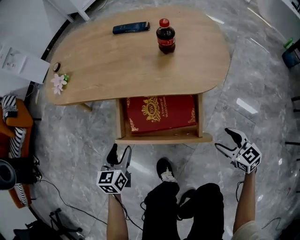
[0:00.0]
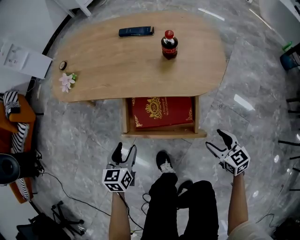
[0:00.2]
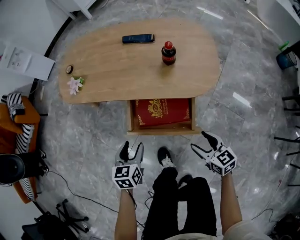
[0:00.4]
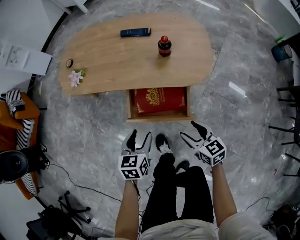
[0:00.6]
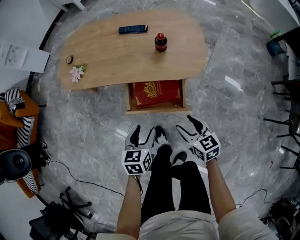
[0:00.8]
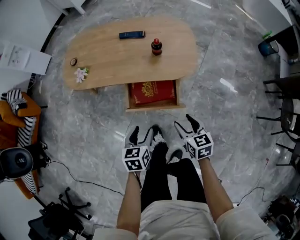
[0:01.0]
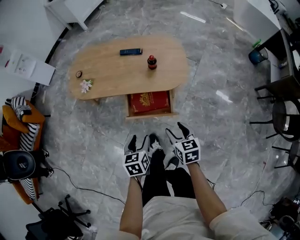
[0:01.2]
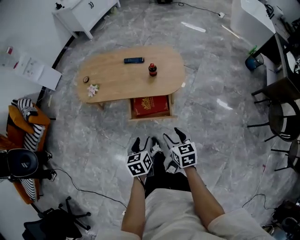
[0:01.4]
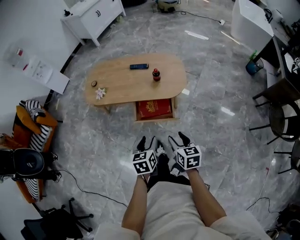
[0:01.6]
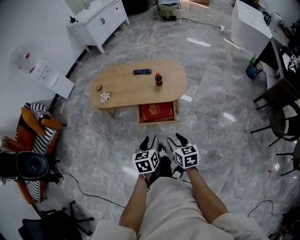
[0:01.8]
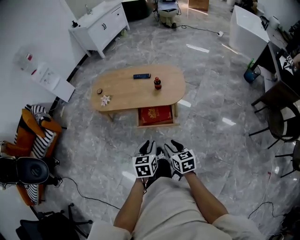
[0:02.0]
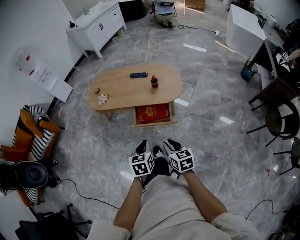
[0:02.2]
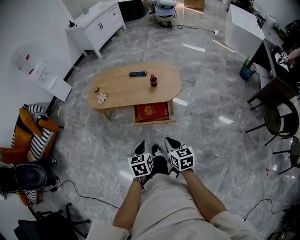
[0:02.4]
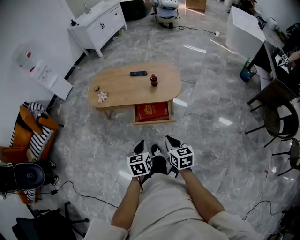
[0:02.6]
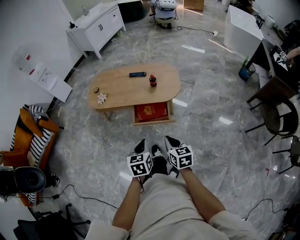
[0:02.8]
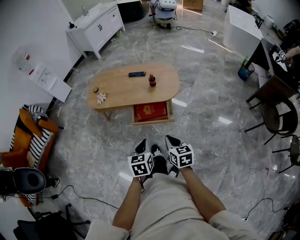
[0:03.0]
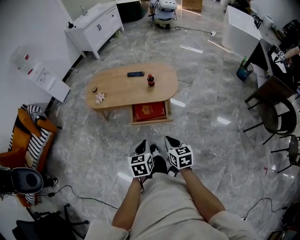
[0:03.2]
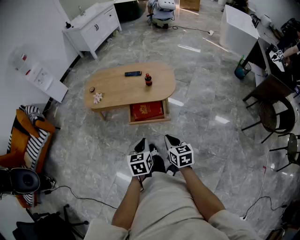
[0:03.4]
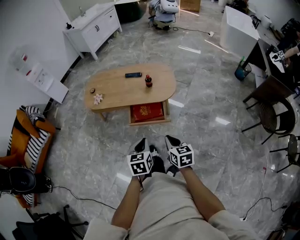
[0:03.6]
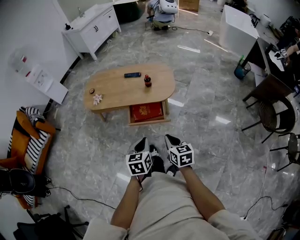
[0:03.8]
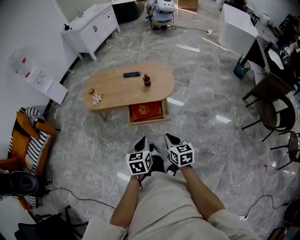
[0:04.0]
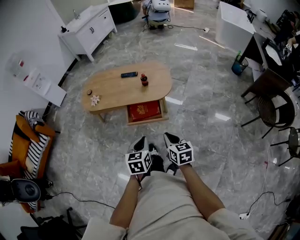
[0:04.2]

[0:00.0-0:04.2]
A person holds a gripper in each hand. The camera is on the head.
0.0 to 1.4 s: The two grippers go about 40 cm upward. The right gripper rotates roughly 20 degrees.
1.4 to 2.8 s: The grippers both shift backward and upward by some 15 cm. The left gripper closes its fingers. Meanwhile the right gripper closes up.
2.8 to 4.2 s: There are only small adjustments of the grippers.

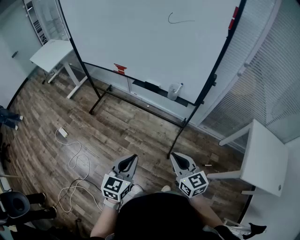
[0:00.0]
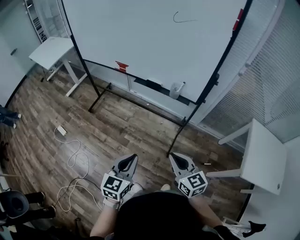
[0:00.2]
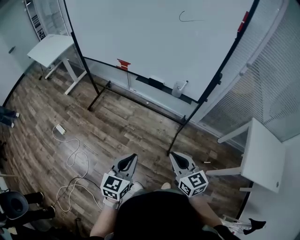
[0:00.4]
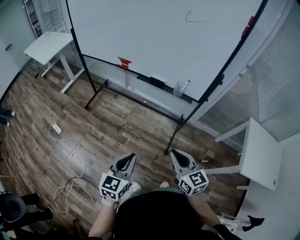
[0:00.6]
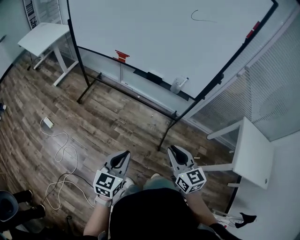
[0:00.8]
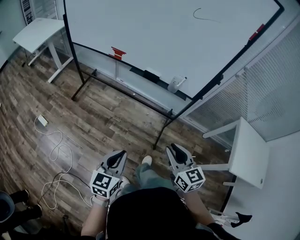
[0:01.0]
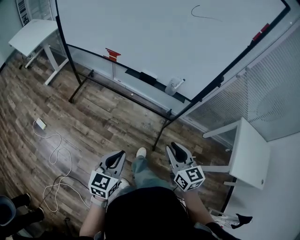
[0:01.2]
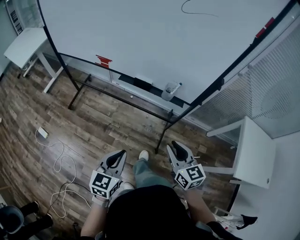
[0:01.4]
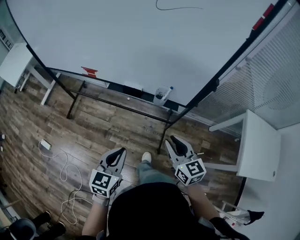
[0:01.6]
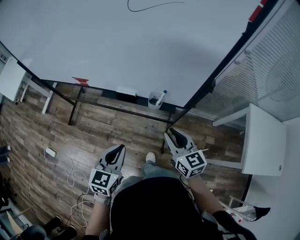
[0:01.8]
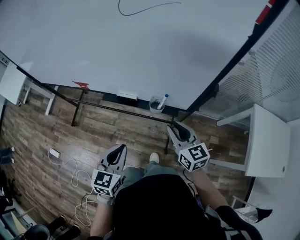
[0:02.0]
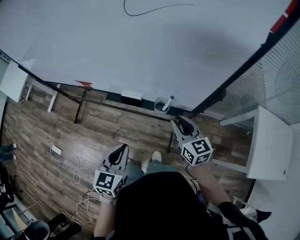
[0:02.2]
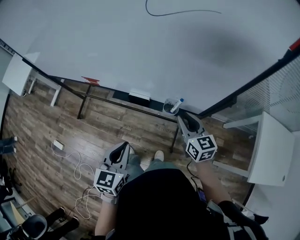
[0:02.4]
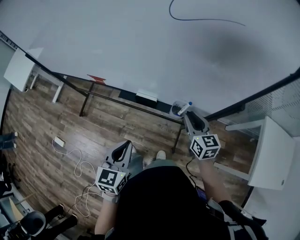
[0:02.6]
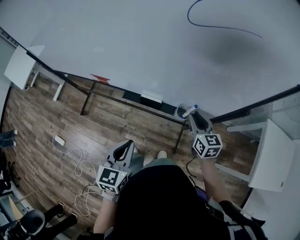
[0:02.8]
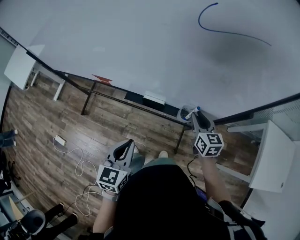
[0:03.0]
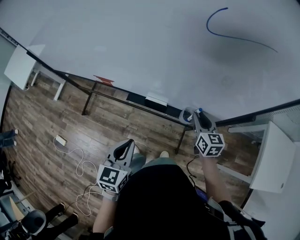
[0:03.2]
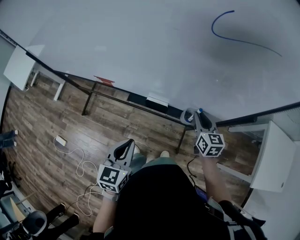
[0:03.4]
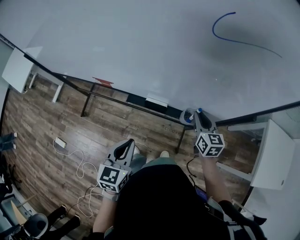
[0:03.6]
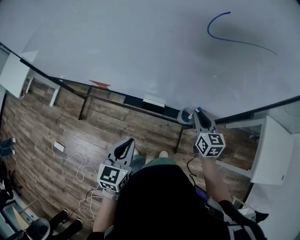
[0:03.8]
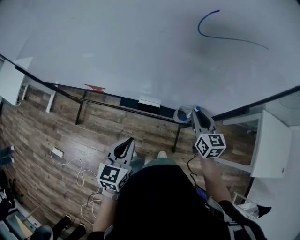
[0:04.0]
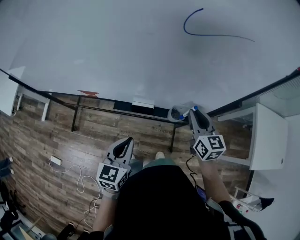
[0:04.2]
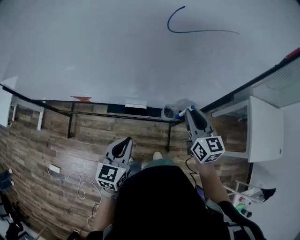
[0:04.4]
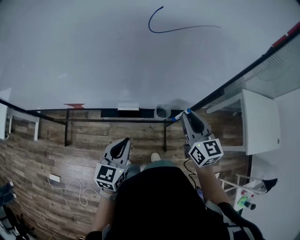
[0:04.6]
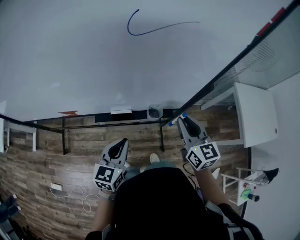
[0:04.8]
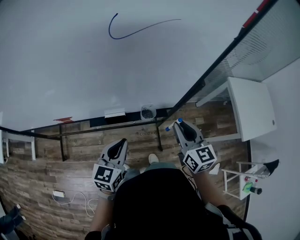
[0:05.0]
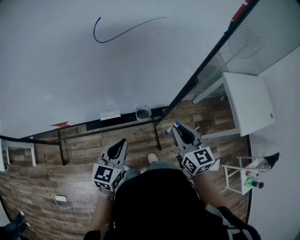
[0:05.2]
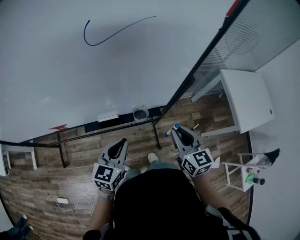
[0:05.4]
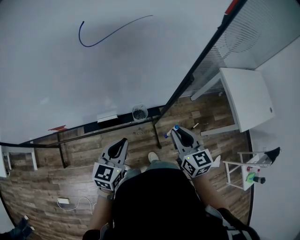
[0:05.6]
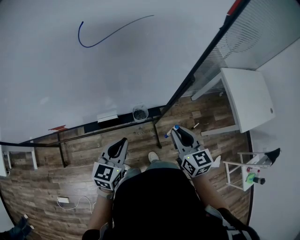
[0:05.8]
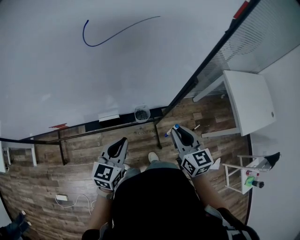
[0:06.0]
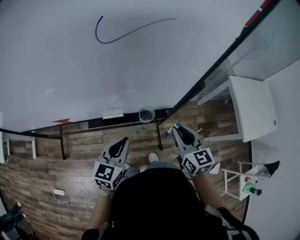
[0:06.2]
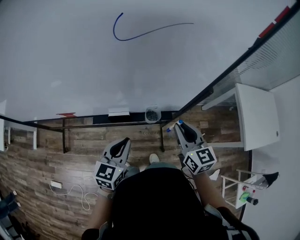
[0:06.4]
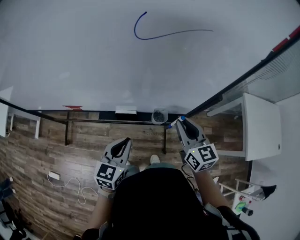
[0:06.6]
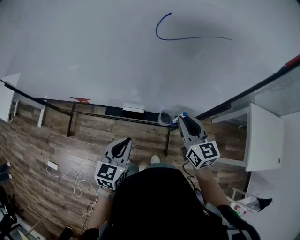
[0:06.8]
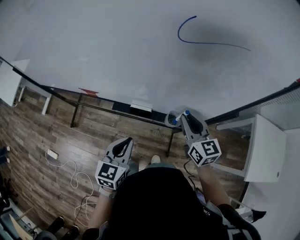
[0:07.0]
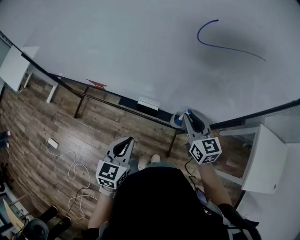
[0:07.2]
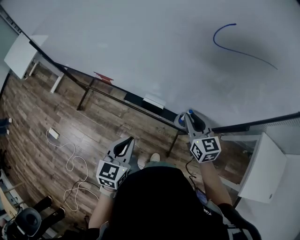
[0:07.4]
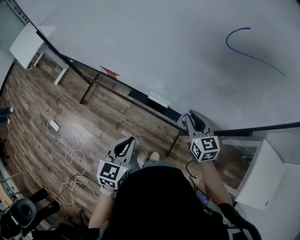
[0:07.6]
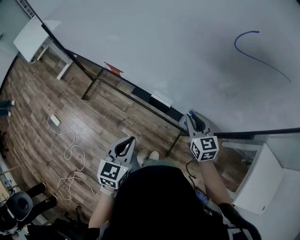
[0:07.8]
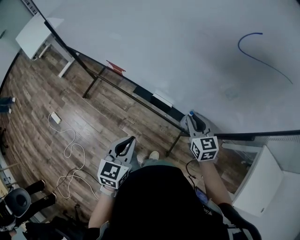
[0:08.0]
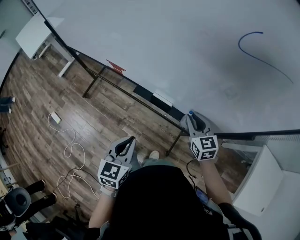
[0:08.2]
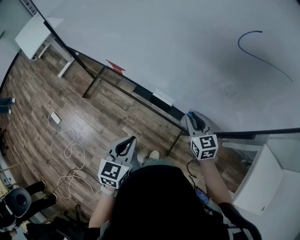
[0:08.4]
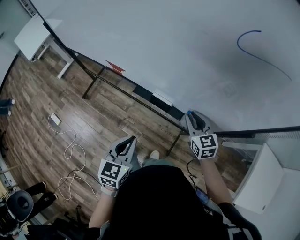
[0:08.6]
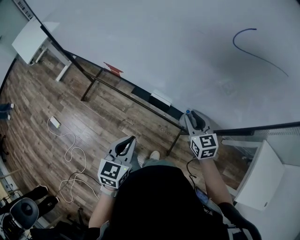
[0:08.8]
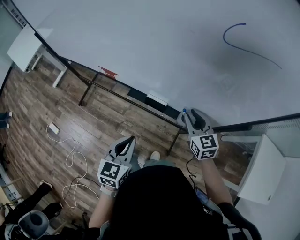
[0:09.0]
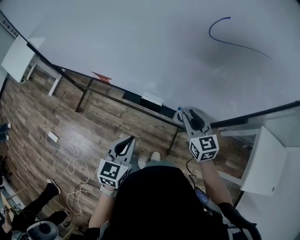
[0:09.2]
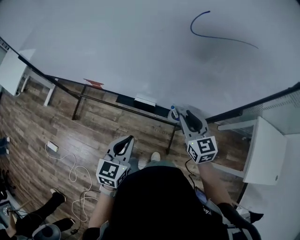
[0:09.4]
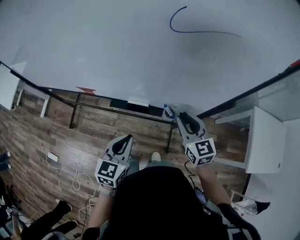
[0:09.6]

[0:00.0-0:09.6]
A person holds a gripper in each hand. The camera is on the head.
0.0 to 1.6 s: The grippers both shift forward by approximately 20 cm.
1.6 to 3.2 s: The left gripper is displaced forward and to the left by some 15 cm. Meanwhile the right gripper travels forward by approximately 25 cm.
3.2 to 4.8 s: The left gripper is displaced to the right and forward by about 10 cm, and rotates approximately 20 degrees; the right gripper moves upward and backward, some 15 cm.
6.4 to 8.0 s: The left gripper ends up roughly 10 cm from where it was, and turns by approximately 40 degrees. The right gripper shifts by approximately 15 cm, and turns by approximately 30 degrees.
8.0 to 9.6 s: The right gripper travels upward and backward by about 10 cm, while the left gripper shifts by roughly 5 cm, and changes its angle by roughly 20 degrees.

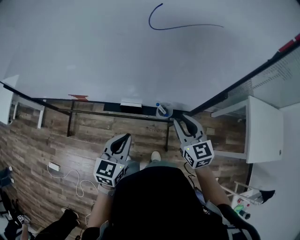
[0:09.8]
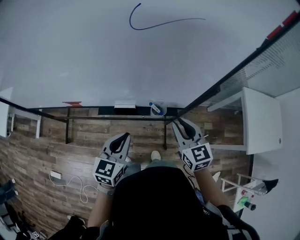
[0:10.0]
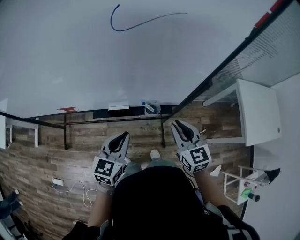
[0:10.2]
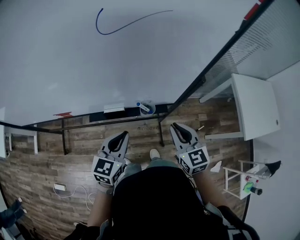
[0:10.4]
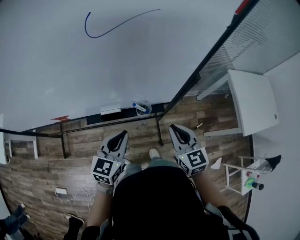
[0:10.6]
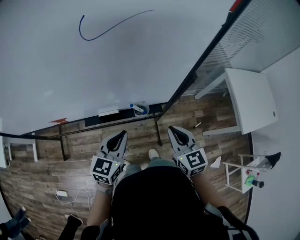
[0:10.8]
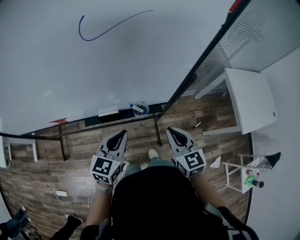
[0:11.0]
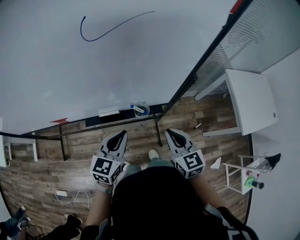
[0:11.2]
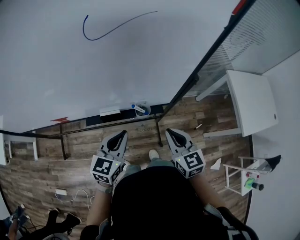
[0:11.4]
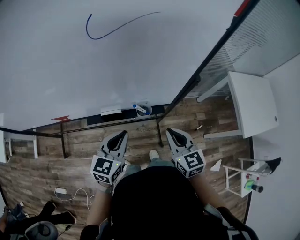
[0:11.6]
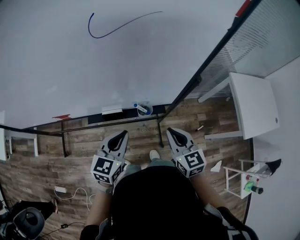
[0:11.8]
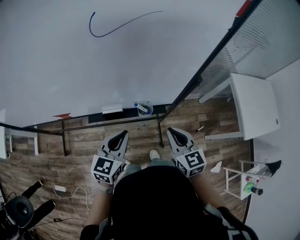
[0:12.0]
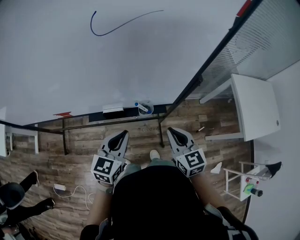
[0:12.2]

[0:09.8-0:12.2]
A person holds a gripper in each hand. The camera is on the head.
9.8 to 11.0 s: The left gripper shifts about 5 cm to the right. The right gripper heads backward and to the right, covering roughly 10 cm, and closes.
11.0 to 12.2 s: The two grippers keep their place.

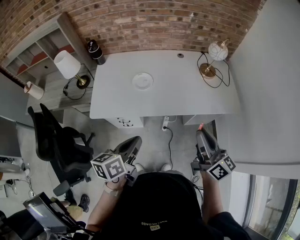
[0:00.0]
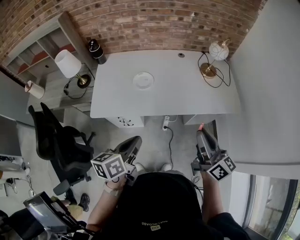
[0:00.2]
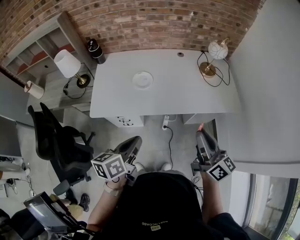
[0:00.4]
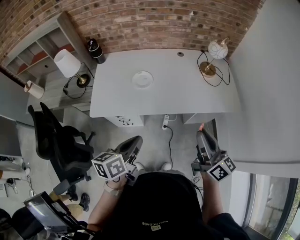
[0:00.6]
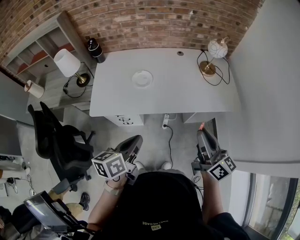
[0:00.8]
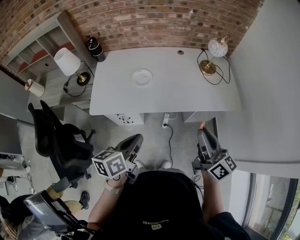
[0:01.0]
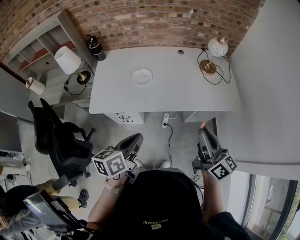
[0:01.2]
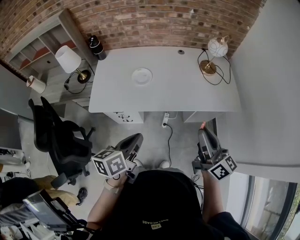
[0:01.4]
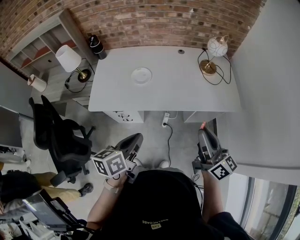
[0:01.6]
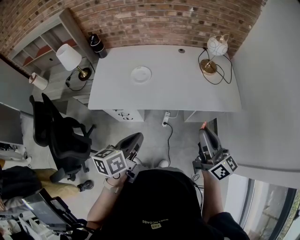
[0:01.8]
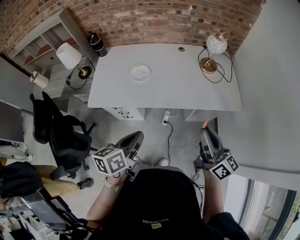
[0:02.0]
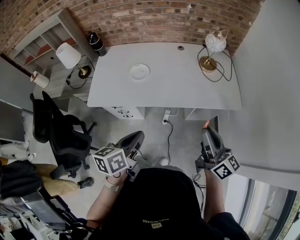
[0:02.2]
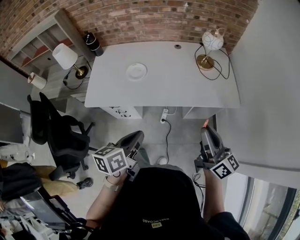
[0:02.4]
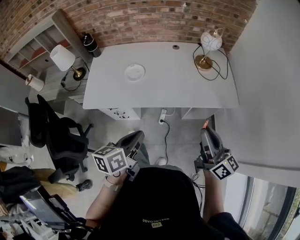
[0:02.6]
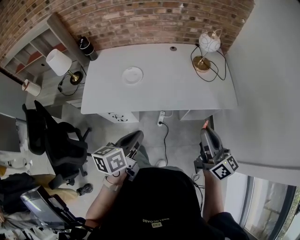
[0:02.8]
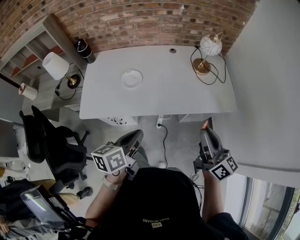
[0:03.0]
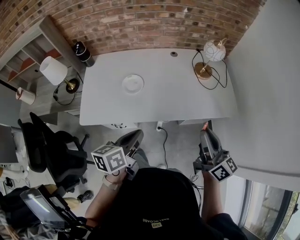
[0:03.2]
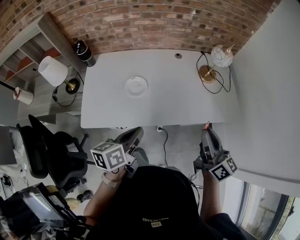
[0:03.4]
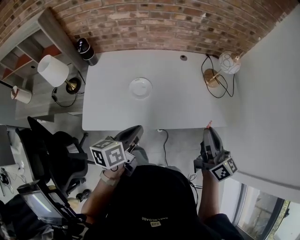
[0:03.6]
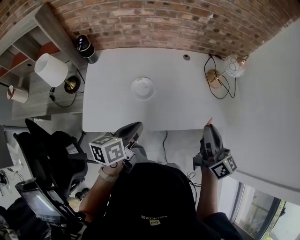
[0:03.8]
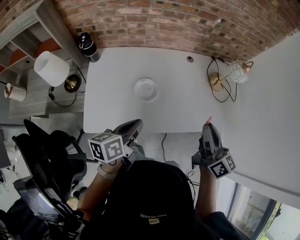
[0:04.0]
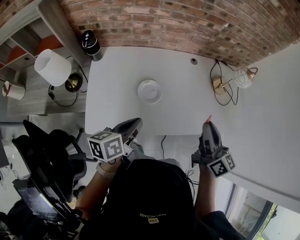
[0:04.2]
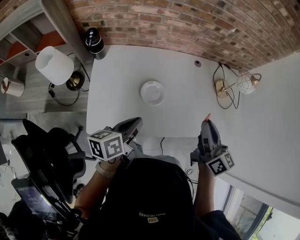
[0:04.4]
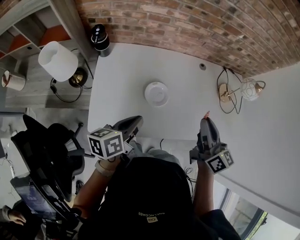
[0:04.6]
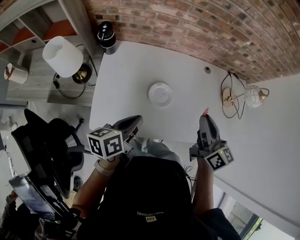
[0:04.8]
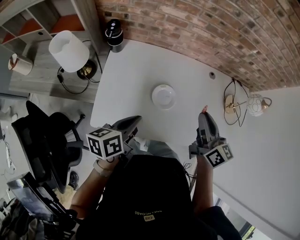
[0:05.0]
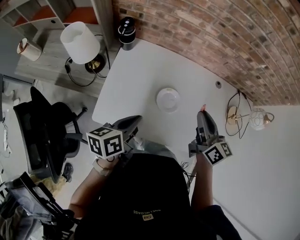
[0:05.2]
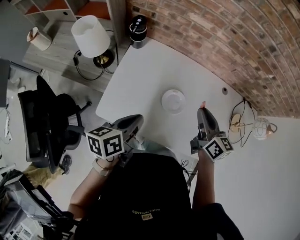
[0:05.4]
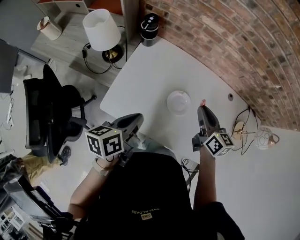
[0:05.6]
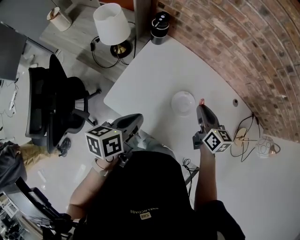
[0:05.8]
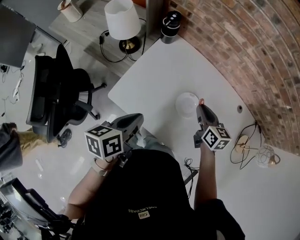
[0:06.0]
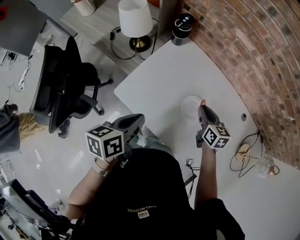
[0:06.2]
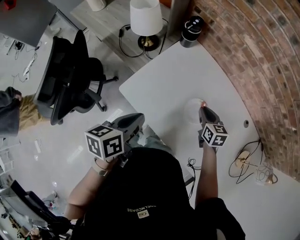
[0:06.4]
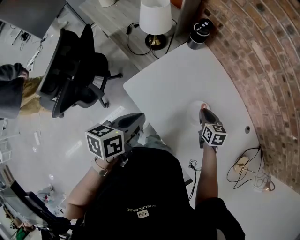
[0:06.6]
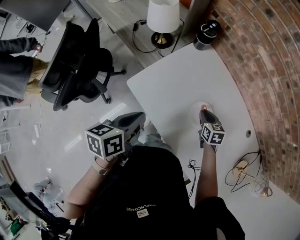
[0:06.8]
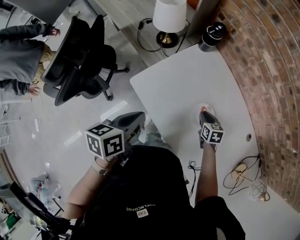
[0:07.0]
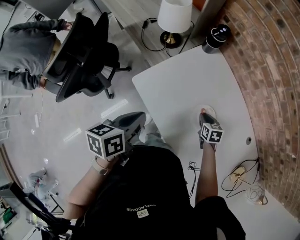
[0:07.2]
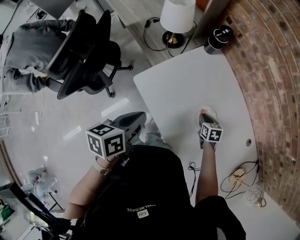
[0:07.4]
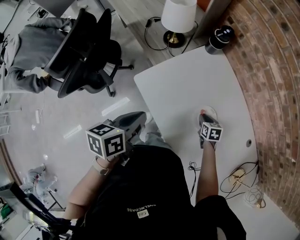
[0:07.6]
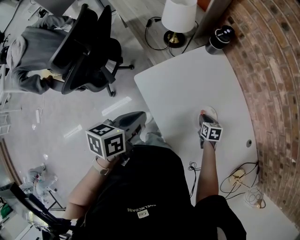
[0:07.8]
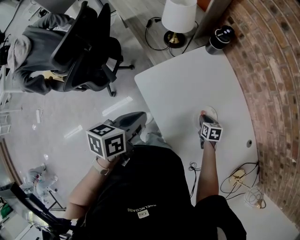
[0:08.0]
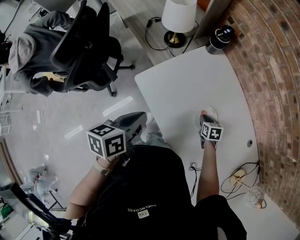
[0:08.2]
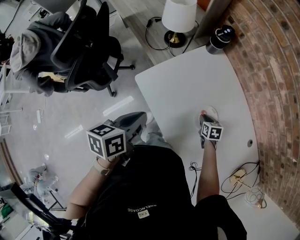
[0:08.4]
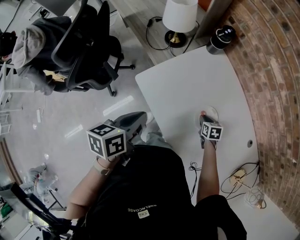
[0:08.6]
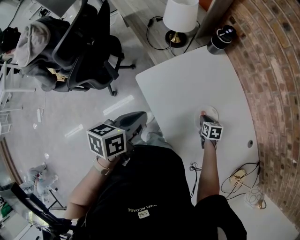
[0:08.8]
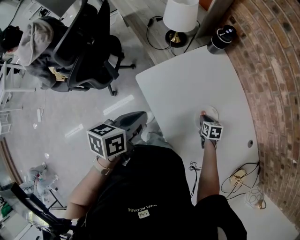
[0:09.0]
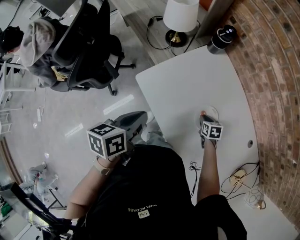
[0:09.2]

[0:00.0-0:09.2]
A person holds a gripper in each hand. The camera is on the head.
0.0 to 1.6 s: There are only small adjustments of the grippers.
1.6 to 3.0 s: The right gripper changes place by approximately 5 cm. The left gripper travels forward by about 5 cm.
3.0 to 4.6 s: Both grippers move to the left and forward, some 30 cm.
4.6 to 6.2 s: The right gripper changes place by about 25 cm, and changes its angle by about 50 degrees. Meanwhile the left gripper shifts by about 10 cm, and changes its angle by approximately 40 degrees.
6.2 to 7.6 s: The right gripper goes some 15 cm downward, and swivels about 30 degrees. Meanwhile the left gripper moves some 5 cm.
7.6 to 9.2 s: The grippers make only small movements.
